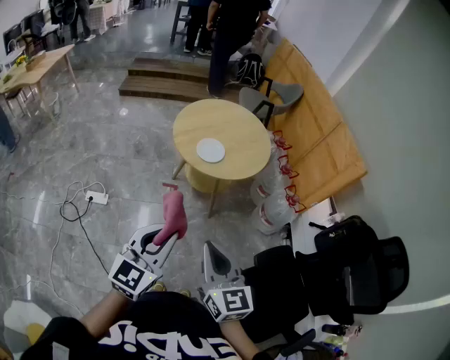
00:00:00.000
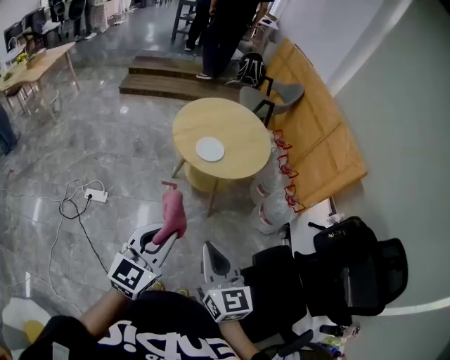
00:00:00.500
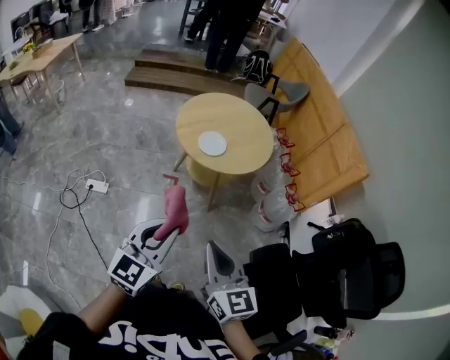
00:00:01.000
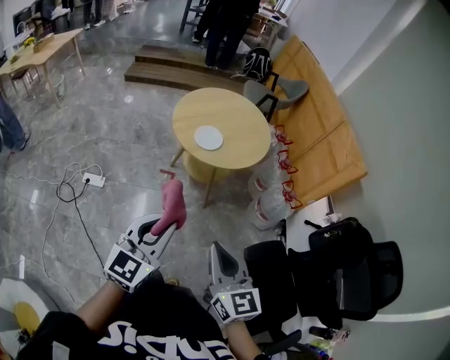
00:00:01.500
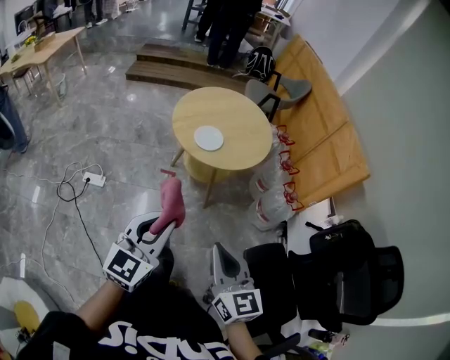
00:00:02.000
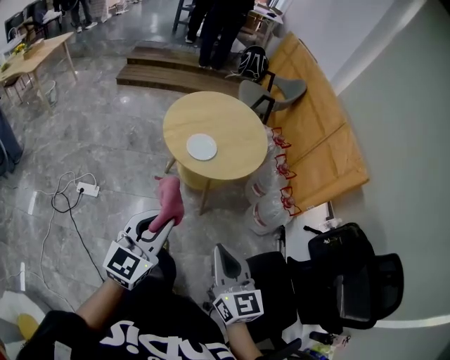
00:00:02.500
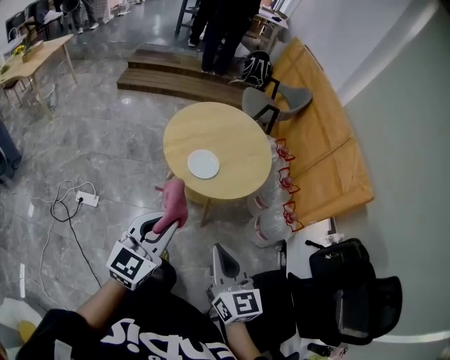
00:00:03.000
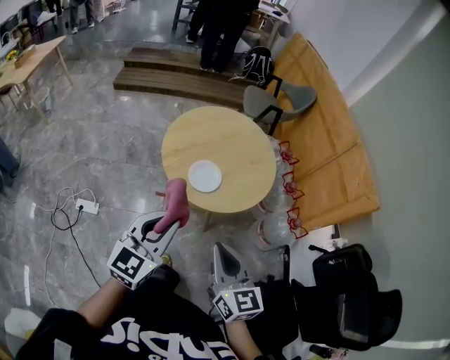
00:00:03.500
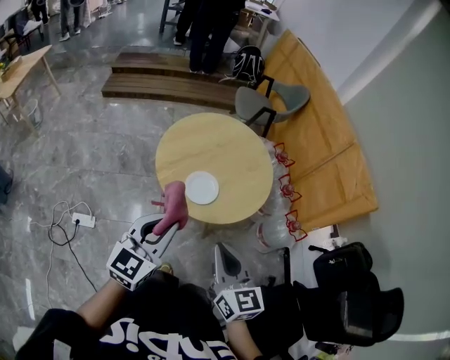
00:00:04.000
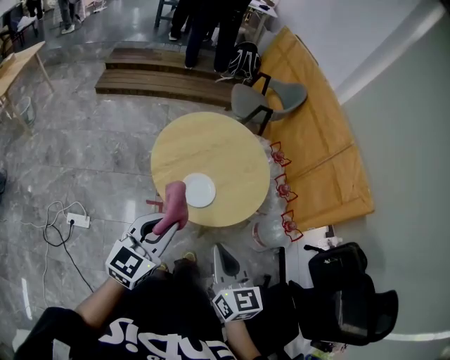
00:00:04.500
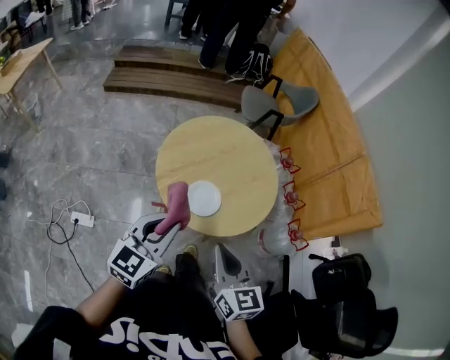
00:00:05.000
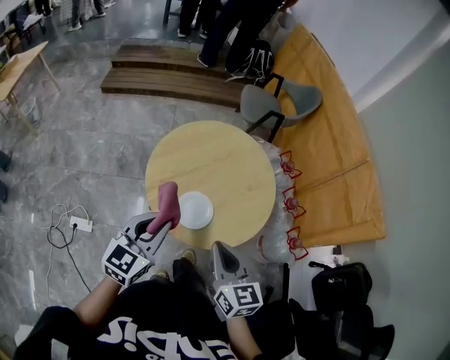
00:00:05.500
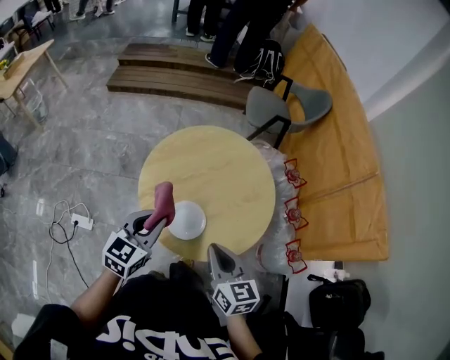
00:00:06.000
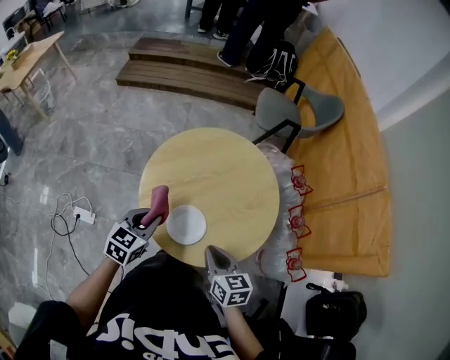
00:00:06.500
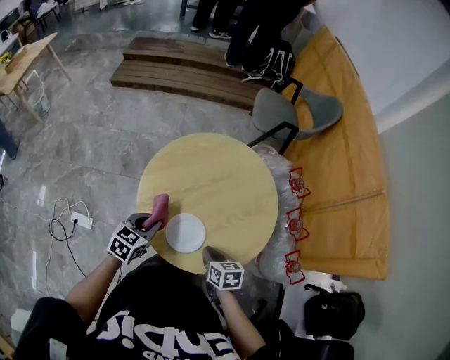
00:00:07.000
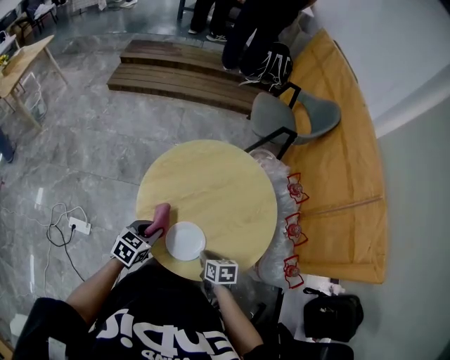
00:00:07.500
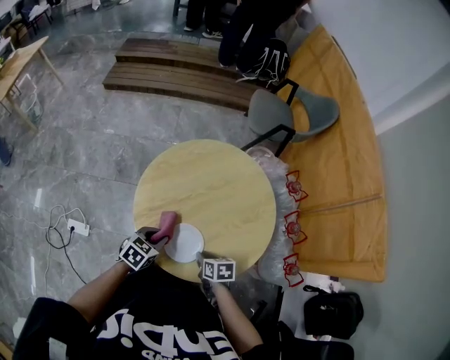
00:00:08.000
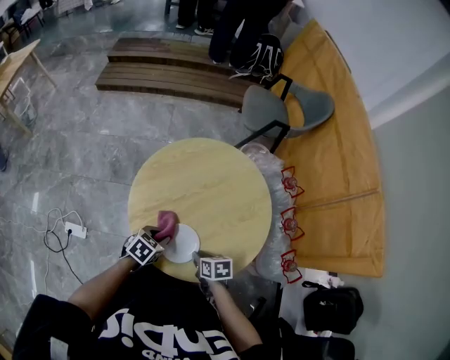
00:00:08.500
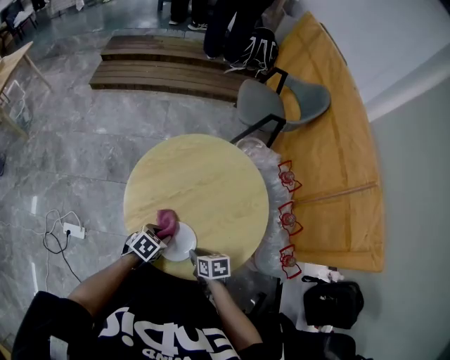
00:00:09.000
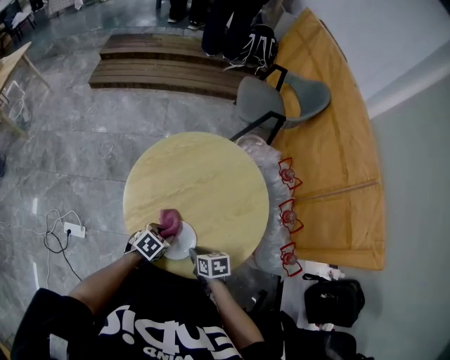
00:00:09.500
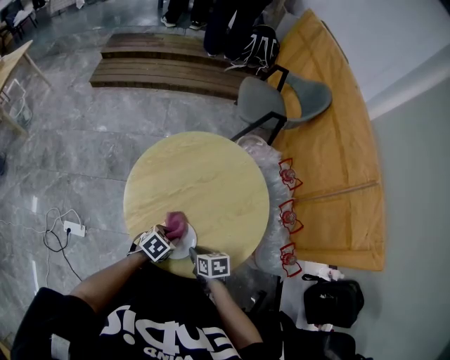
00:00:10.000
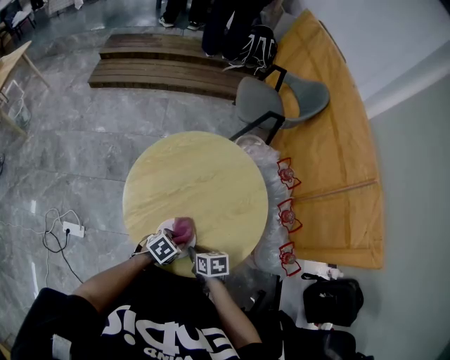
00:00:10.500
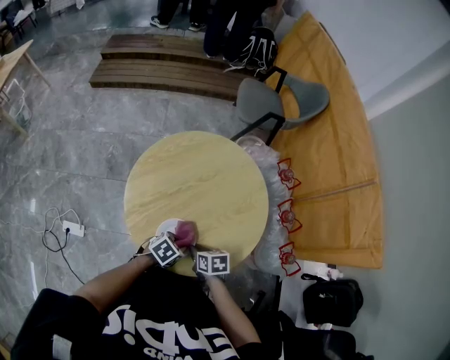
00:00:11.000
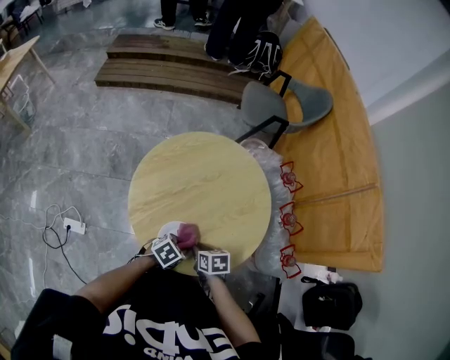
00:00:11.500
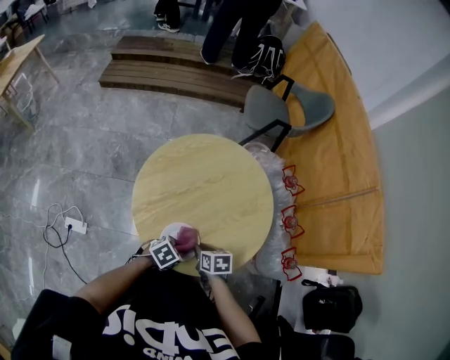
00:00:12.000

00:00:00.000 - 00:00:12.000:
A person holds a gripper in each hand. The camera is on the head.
00:00:00.000 - 00:00:02.000: The right gripper travels to the right by some 10 cm.
00:00:02.000 - 00:00:04.000: The grippers both shift forward by some 30 cm.
00:00:04.000 - 00:00:06.000: Both grippers travel together forward and downward, roughly 25 cm.
00:00:06.000 - 00:00:08.000: The two grippers go about 20 cm downward. The right gripper tips its fingers downward by some 30 degrees. Meanwhile the left gripper rotates about 30 degrees.
00:00:08.000 - 00:00:10.000: The left gripper moves roughly 10 cm.
00:00:10.000 - 00:00:12.000: The left gripper ends up some 5 cm from where it was.

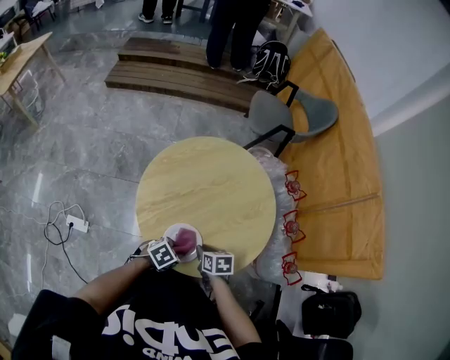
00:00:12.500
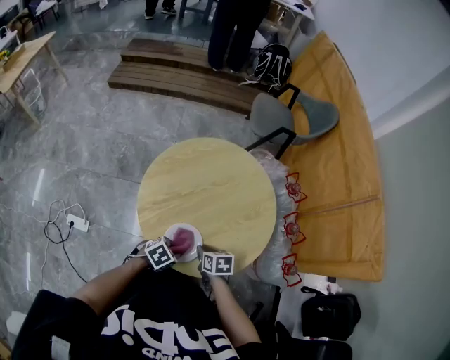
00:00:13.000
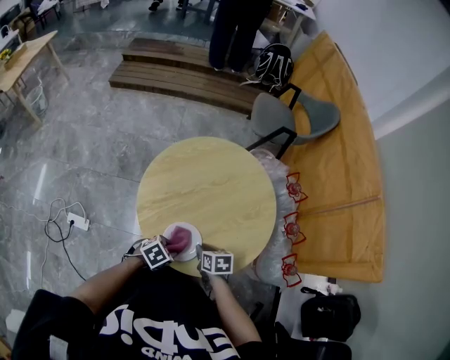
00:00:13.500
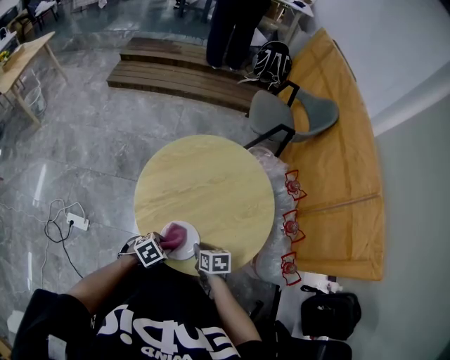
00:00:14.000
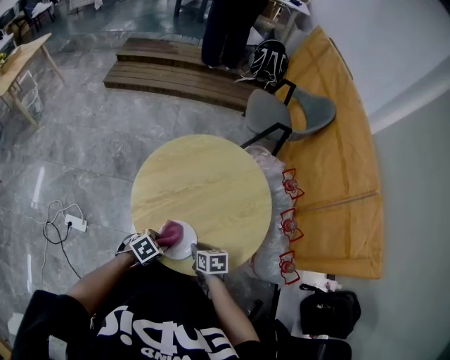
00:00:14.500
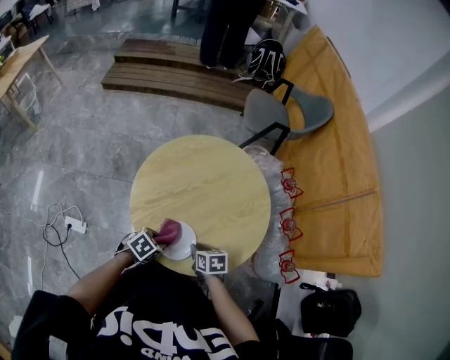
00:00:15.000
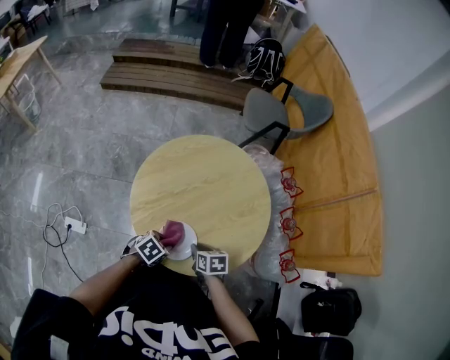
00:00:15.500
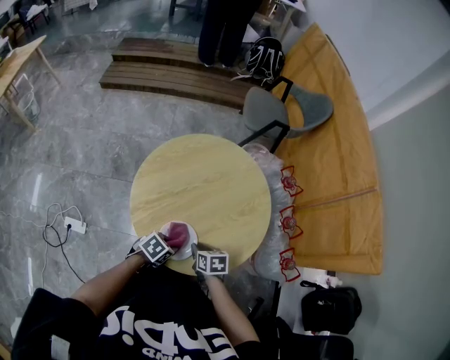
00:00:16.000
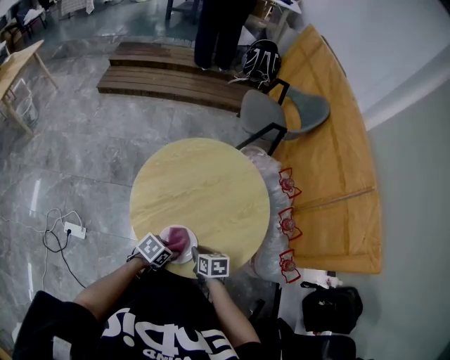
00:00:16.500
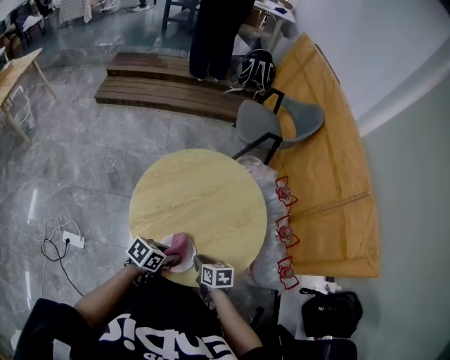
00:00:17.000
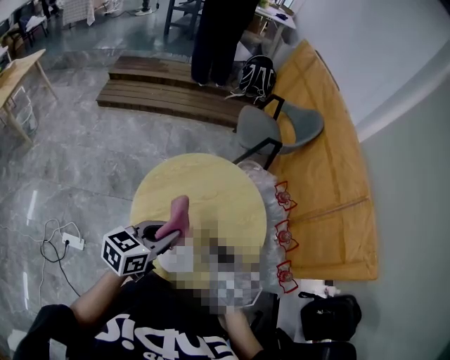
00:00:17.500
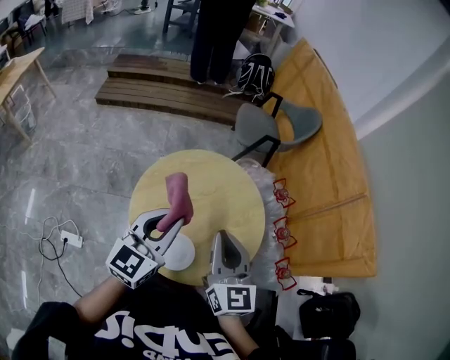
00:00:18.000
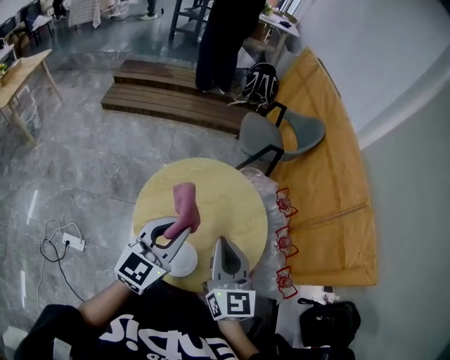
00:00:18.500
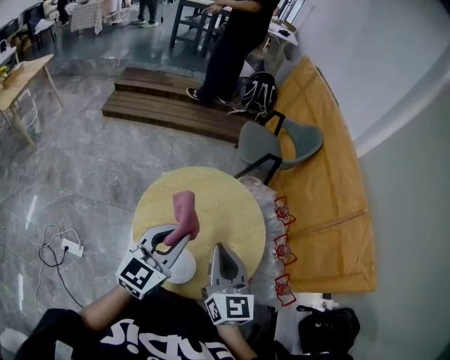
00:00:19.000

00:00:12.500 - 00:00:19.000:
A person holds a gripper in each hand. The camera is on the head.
00:00:12.500 - 00:00:14.500: The left gripper shifts by about 5 cm.
00:00:14.500 - 00:00:17.000: The left gripper heads upward, covering some 5 cm, and rotates some 30 degrees.
00:00:17.000 - 00:00:19.000: The two grippers go about 30 cm upward. The right gripper angles its fingers upward, by some 50 degrees; the left gripper angles its fingers upward, by roughly 40 degrees.

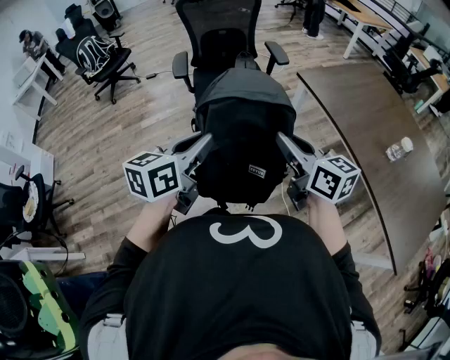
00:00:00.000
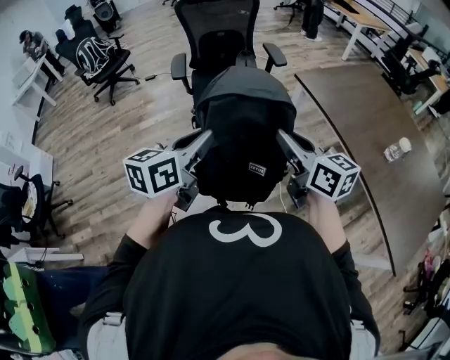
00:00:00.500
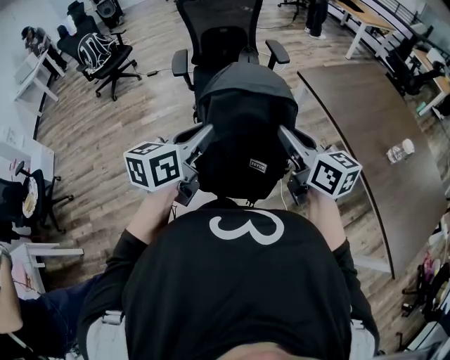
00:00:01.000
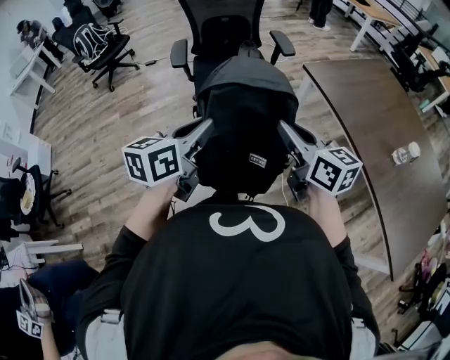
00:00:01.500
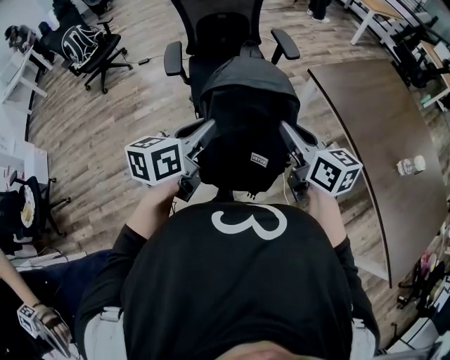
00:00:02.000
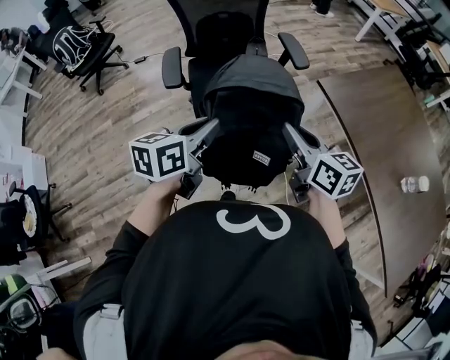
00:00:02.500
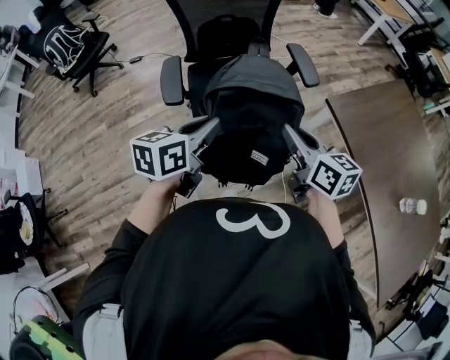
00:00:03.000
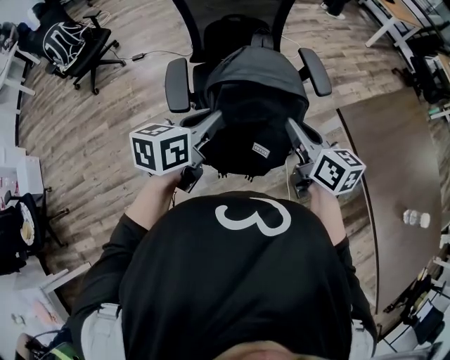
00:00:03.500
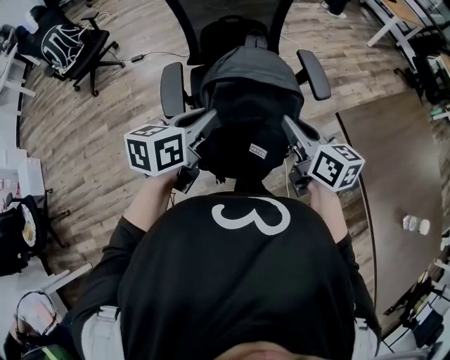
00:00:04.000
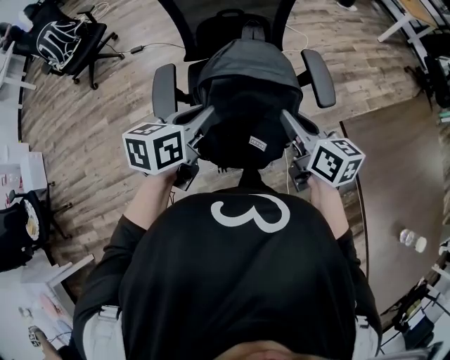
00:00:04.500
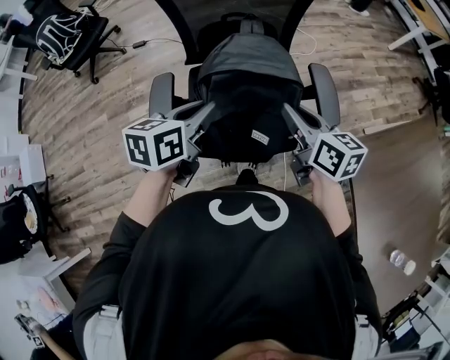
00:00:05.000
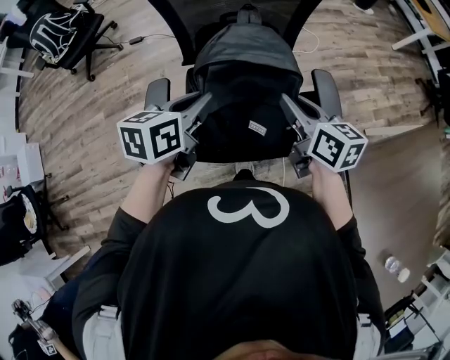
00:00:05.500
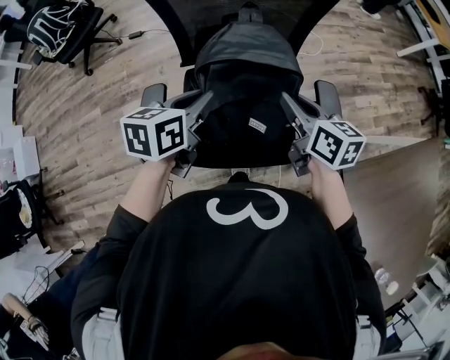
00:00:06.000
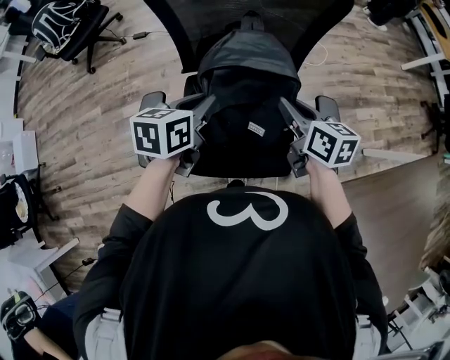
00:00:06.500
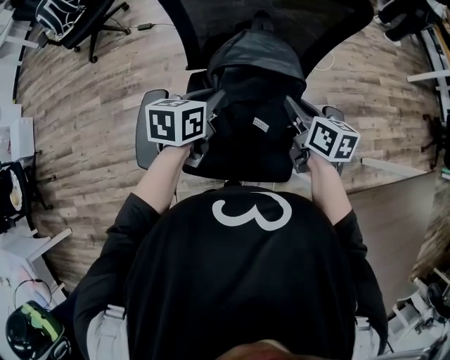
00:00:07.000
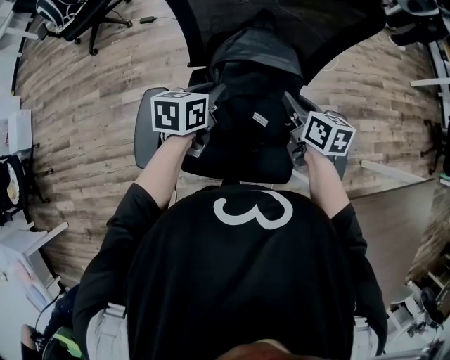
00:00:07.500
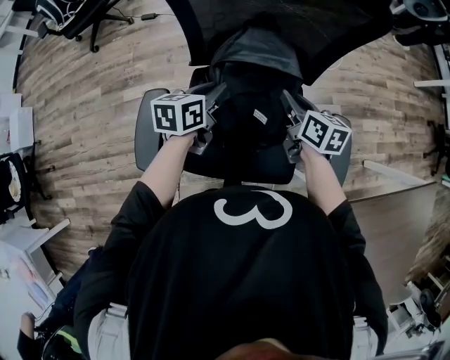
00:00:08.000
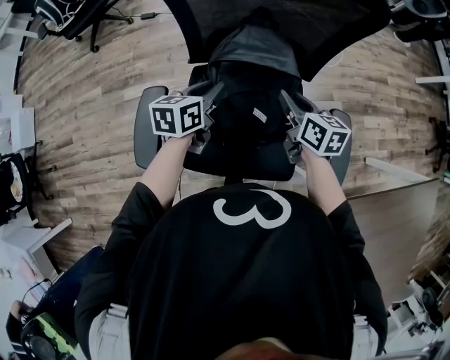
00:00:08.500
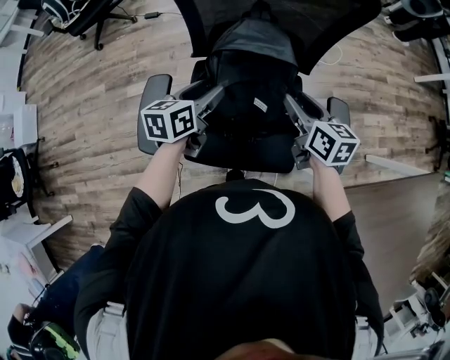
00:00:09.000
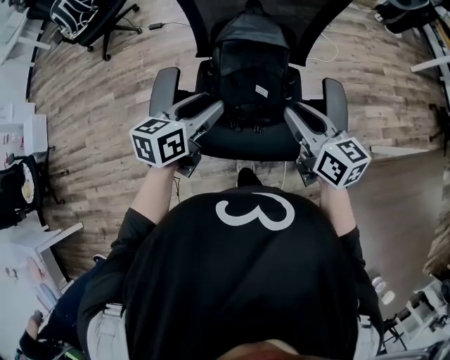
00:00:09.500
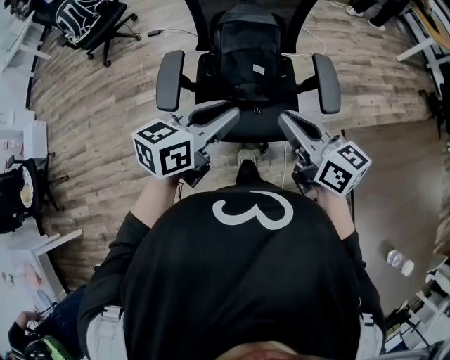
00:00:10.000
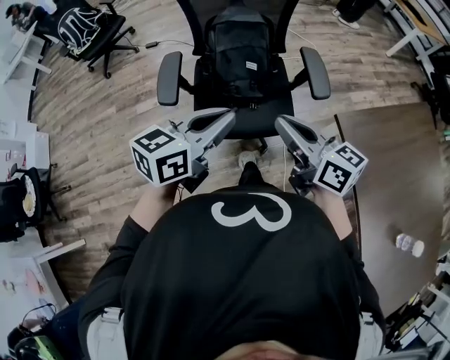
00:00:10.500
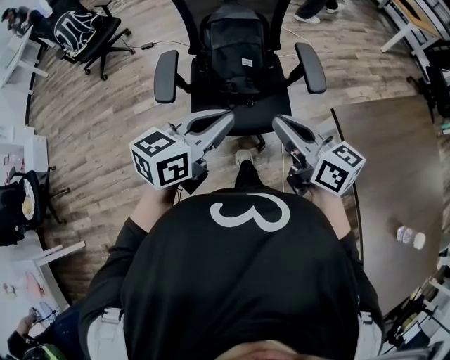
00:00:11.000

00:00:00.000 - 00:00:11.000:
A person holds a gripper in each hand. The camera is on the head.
00:00:00.000 - 00:00:02.000: Both grippers move forward, approximately 15 cm.
00:00:02.000 - 00:00:03.500: Both grippers travel together forward, approximately 30 cm.
00:00:03.500 - 00:00:05.500: Both grippers travel together forward, some 25 cm.
00:00:05.500 - 00:00:07.500: Both grippers move forward and downward, roughly 20 cm.
00:00:07.500 - 00:00:09.000: The left gripper moves about 5 cm, and opens its fingers; the right gripper moves backward, approximately 5 cm, and opens.
00:00:09.000 - 00:00:11.000: The two grippers go approximately 40 cm backward and upward. The right gripper changes its angle by some 20 degrees, and closes its fingers, while the left gripper rotates approximately 30 degrees, and closes up.
